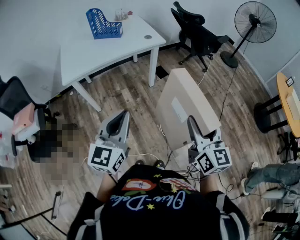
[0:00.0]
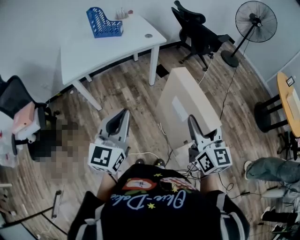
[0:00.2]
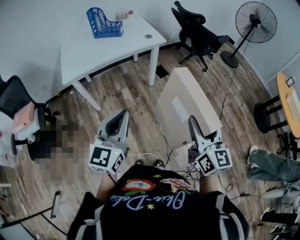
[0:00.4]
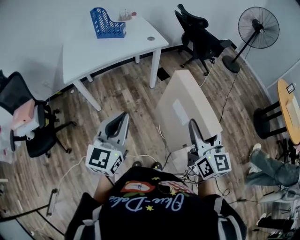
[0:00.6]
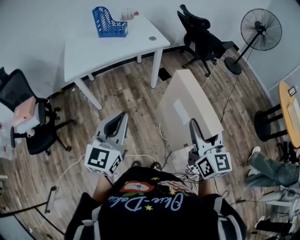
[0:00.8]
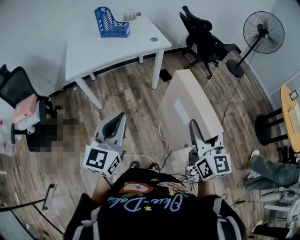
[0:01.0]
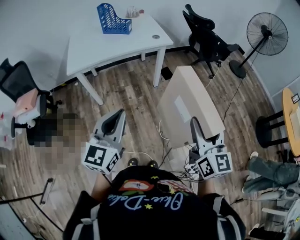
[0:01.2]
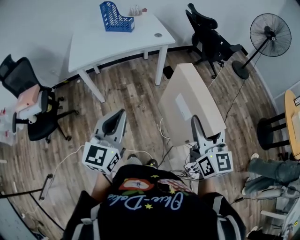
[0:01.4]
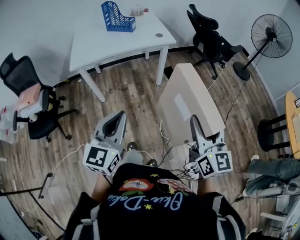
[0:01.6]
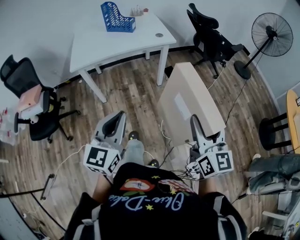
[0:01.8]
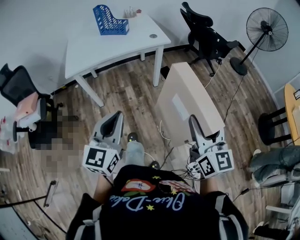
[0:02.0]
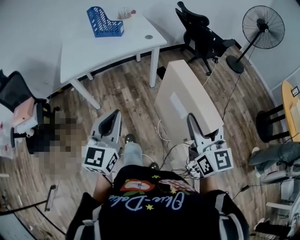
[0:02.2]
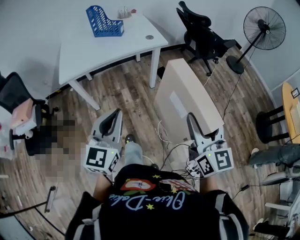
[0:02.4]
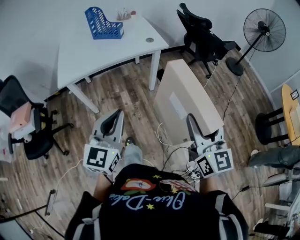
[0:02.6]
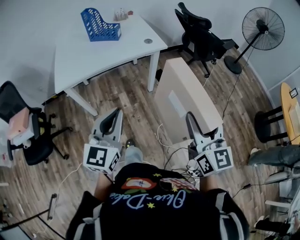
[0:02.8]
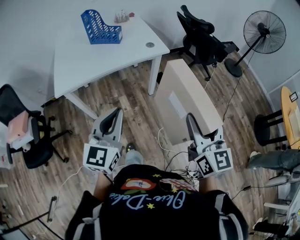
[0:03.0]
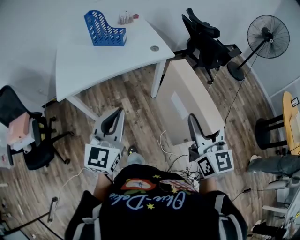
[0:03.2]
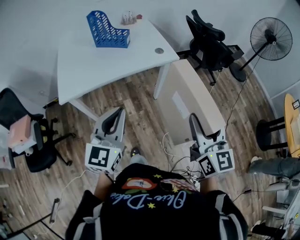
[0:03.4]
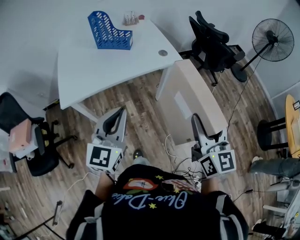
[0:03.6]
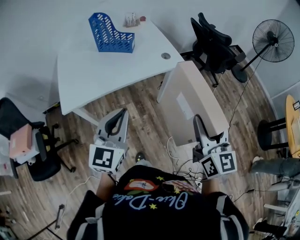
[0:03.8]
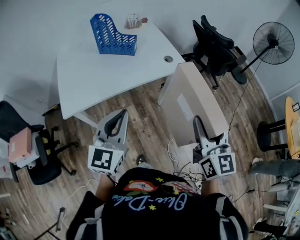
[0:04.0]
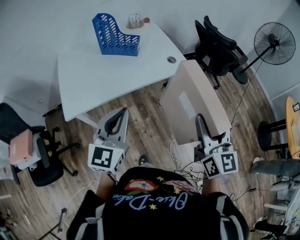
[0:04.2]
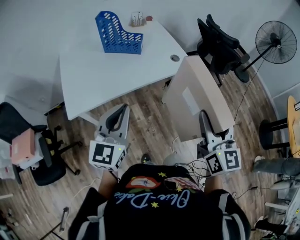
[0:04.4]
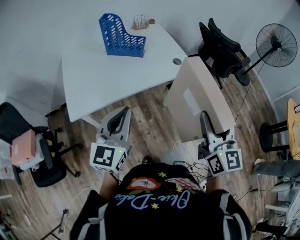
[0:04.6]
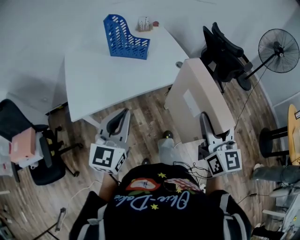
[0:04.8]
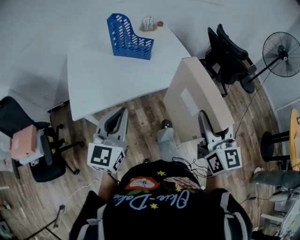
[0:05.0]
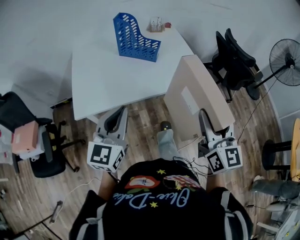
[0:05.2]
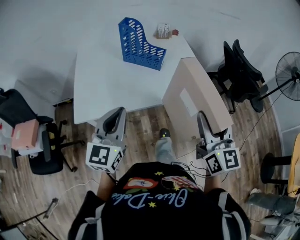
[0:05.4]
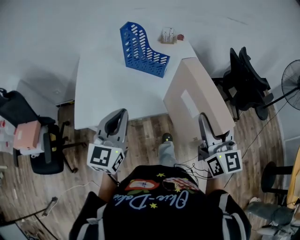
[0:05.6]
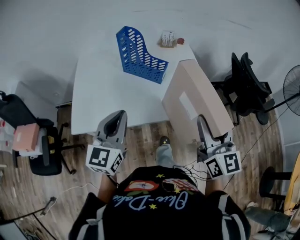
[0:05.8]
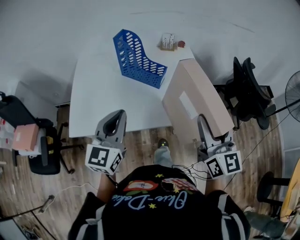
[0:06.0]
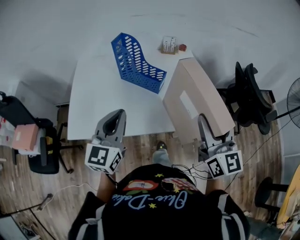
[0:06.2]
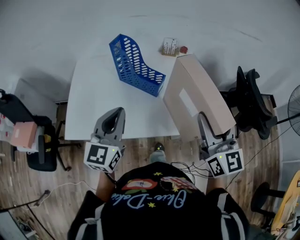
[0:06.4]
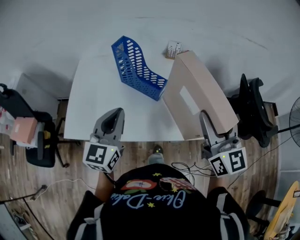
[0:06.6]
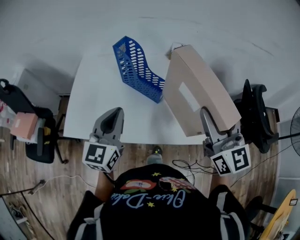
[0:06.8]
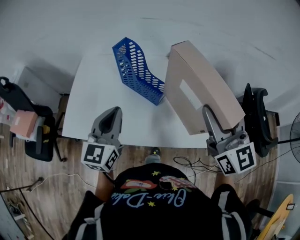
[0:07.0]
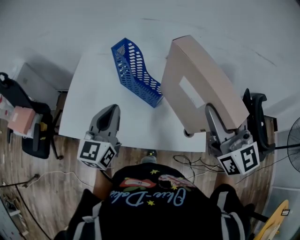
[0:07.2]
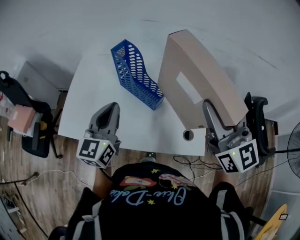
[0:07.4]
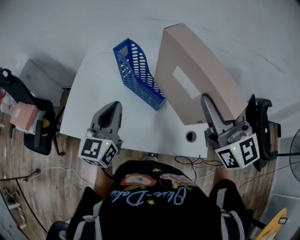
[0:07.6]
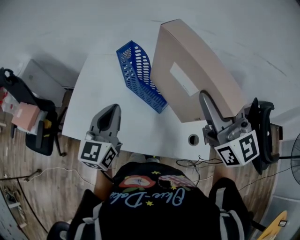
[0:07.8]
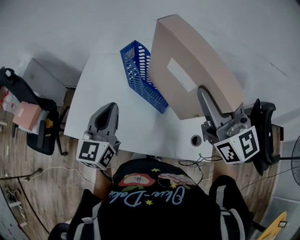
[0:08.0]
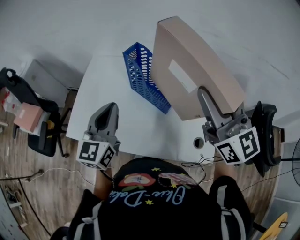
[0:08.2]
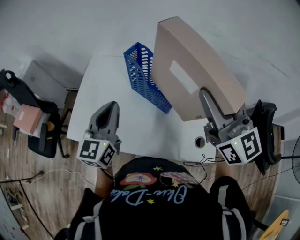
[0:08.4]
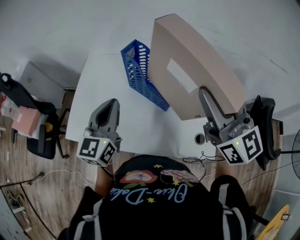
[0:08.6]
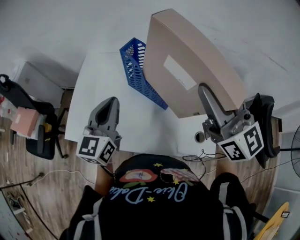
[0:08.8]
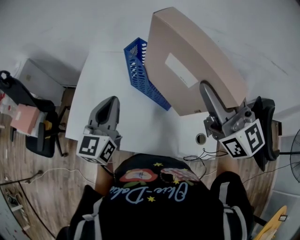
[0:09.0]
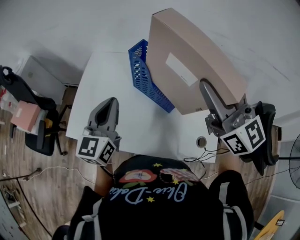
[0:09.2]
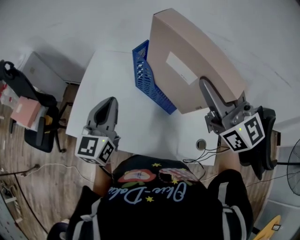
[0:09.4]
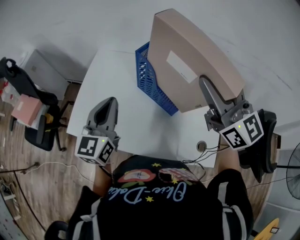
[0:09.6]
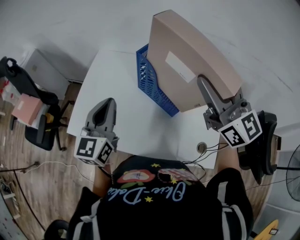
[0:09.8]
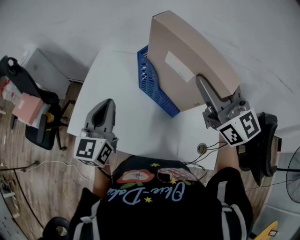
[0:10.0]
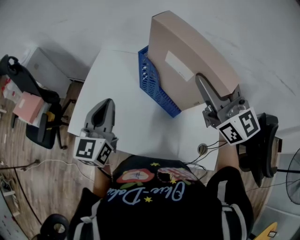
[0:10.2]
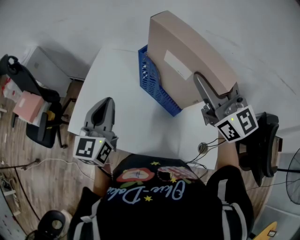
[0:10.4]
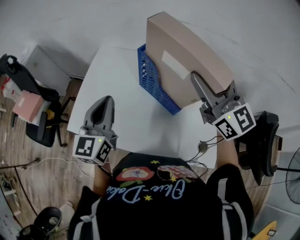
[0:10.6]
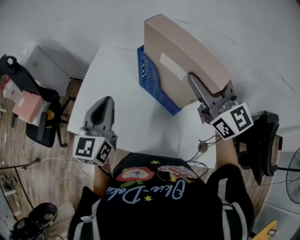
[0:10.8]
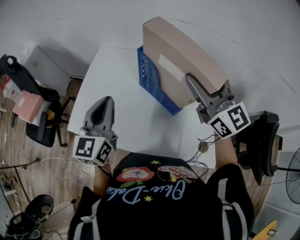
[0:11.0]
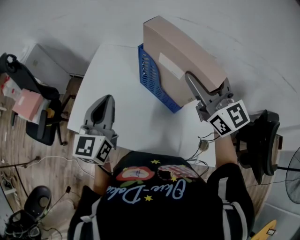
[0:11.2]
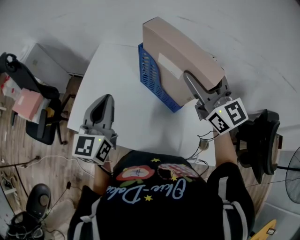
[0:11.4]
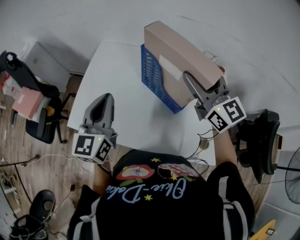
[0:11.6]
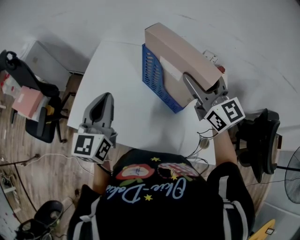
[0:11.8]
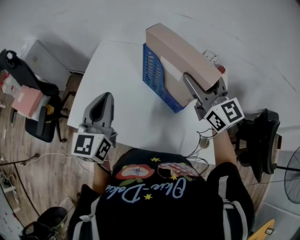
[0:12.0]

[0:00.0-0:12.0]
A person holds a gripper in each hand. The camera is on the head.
0:00.0 to 0:01.6: There are only small adjustments of the grippers.
0:01.6 to 0:03.0: Both grippers travel together forward, about 15 cm.
0:03.0 to 0:04.4: The right gripper heads forward and to the left, covering roughly 20 cm, while the left gripper is displaced to the left and forward by approximately 25 cm.
0:04.4 to 0:06.0: Both grippers travel together forward, approximately 25 cm. The right gripper rotates about 20 degrees.
0:06.0 to 0:07.6: The right gripper travels forward by approximately 20 cm, and turns by approximately 30 degrees, while the left gripper heads forward, covering approximately 15 cm.
0:07.6 to 0:09.0: The right gripper heads to the left and forward, covering about 10 cm. The left gripper shifts about 5 cm to the left.
0:09.0 to 0:10.4: The right gripper travels forward by approximately 10 cm.
0:10.4 to 0:12.0: The right gripper goes roughly 10 cm downward.

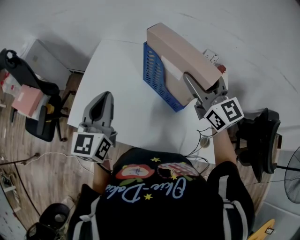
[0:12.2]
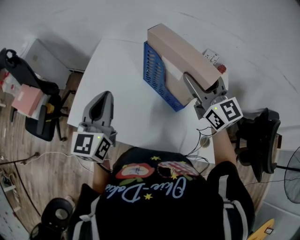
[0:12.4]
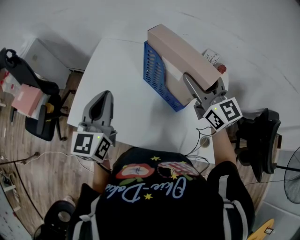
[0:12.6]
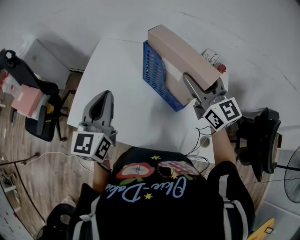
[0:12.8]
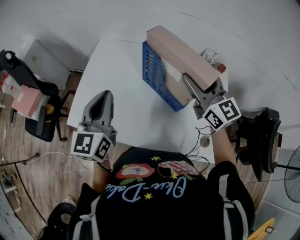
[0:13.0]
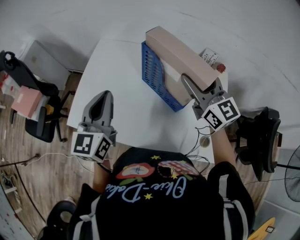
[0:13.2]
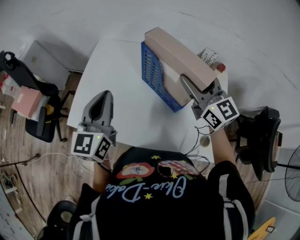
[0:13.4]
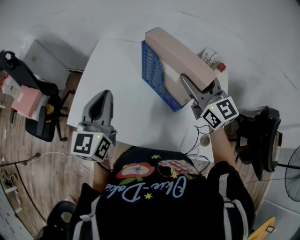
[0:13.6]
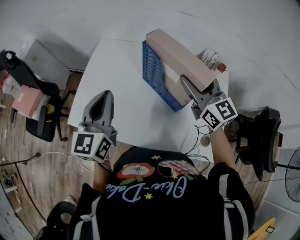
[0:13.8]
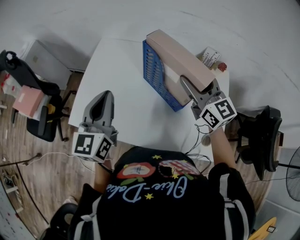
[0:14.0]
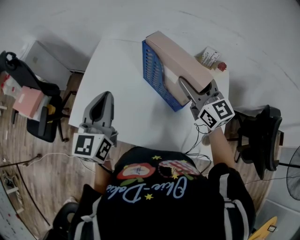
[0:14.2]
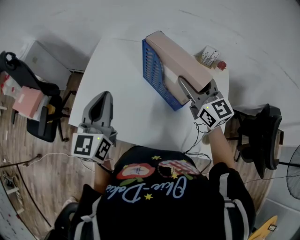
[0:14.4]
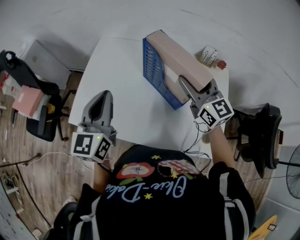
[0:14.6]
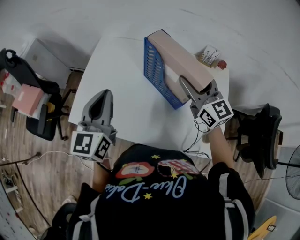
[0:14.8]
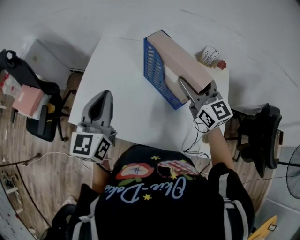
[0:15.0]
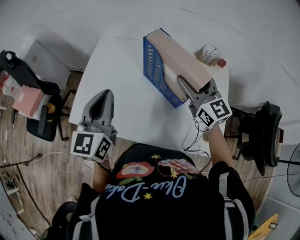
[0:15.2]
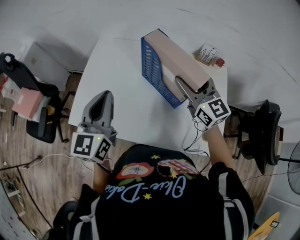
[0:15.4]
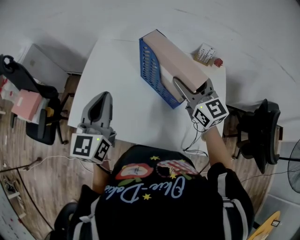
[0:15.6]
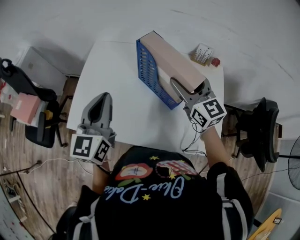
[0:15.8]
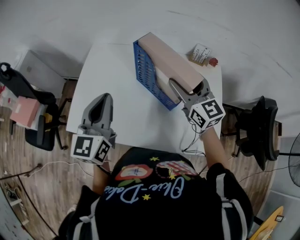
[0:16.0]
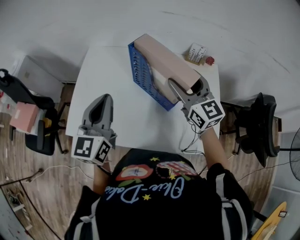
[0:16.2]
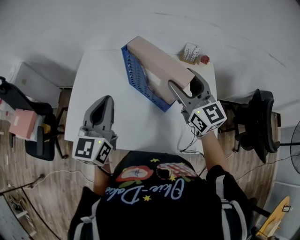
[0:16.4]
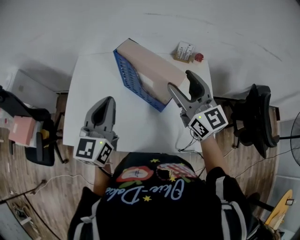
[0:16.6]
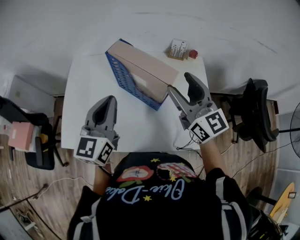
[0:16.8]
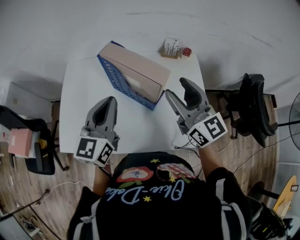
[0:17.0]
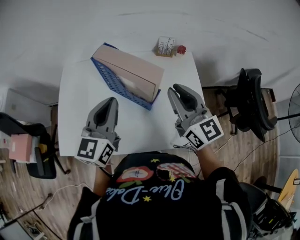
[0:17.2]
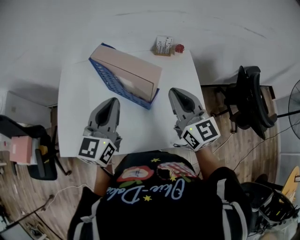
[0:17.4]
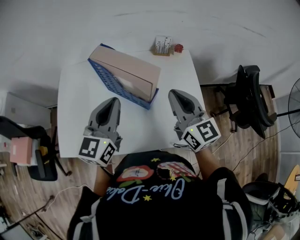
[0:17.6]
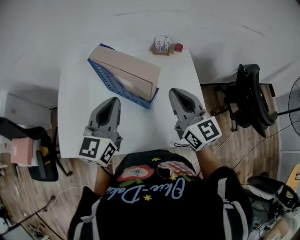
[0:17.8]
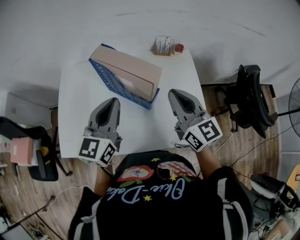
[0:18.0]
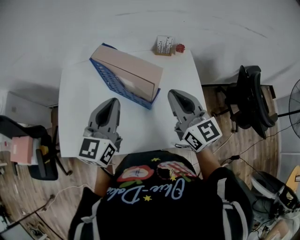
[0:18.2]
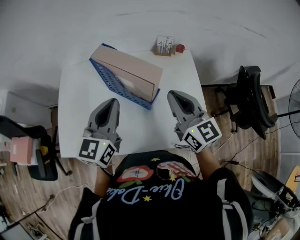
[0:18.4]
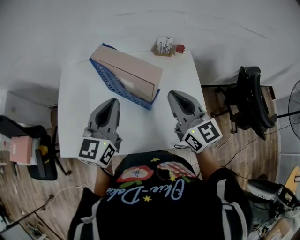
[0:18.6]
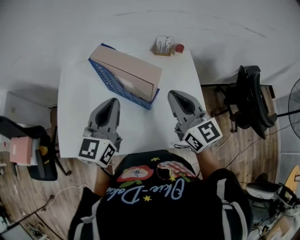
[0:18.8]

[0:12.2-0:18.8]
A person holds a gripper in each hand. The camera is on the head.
0:12.2 to 0:15.4: The grippers make only small movements.
0:15.4 to 0:17.2: The left gripper goes some 15 cm to the right, and rotates approximately 20 degrees. Meanwhile the right gripper shifts approximately 10 cm backward and to the right, and closes.
0:17.2 to 0:18.8: The grippers stay close to where they were, moving slightly.

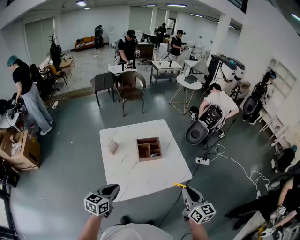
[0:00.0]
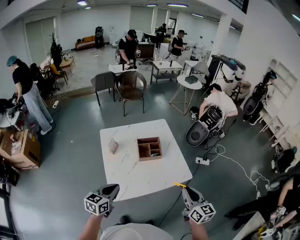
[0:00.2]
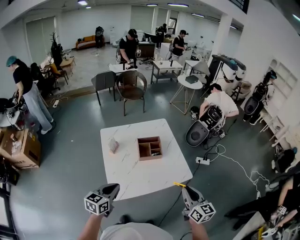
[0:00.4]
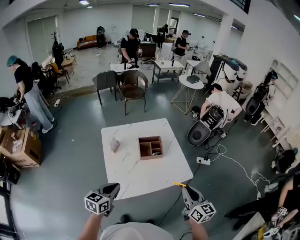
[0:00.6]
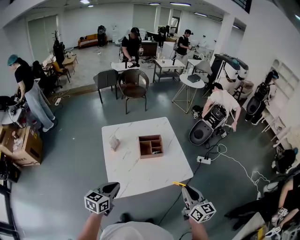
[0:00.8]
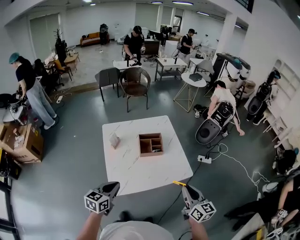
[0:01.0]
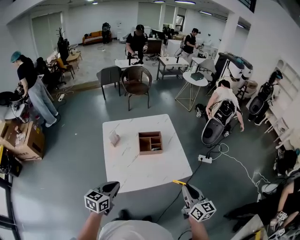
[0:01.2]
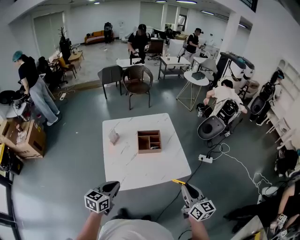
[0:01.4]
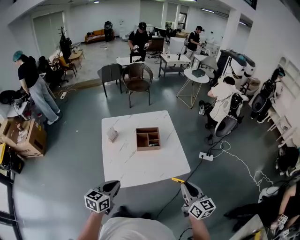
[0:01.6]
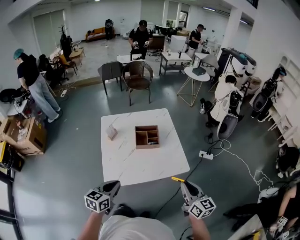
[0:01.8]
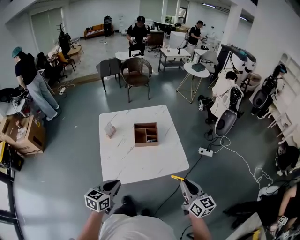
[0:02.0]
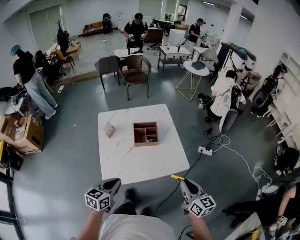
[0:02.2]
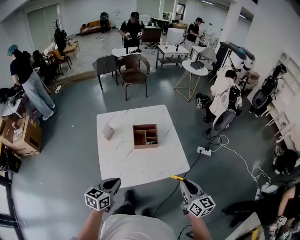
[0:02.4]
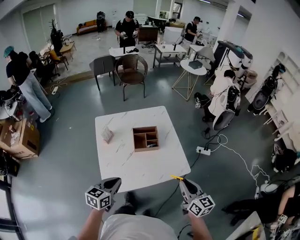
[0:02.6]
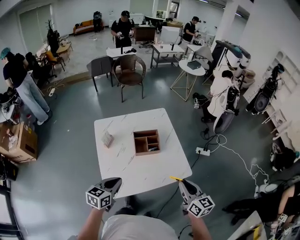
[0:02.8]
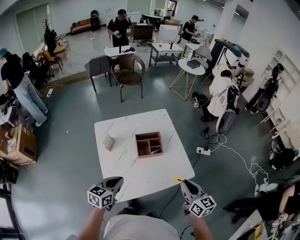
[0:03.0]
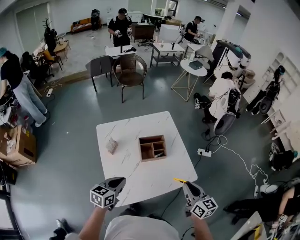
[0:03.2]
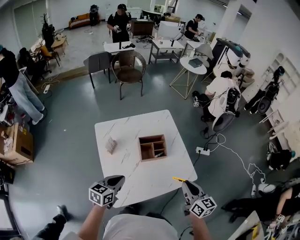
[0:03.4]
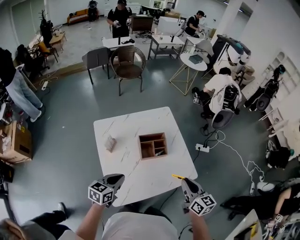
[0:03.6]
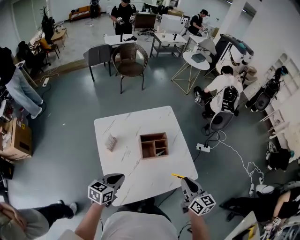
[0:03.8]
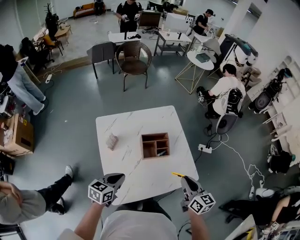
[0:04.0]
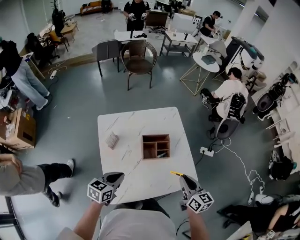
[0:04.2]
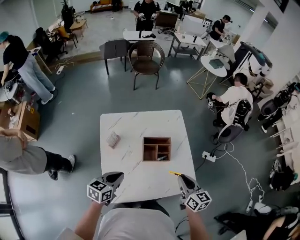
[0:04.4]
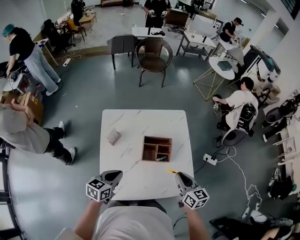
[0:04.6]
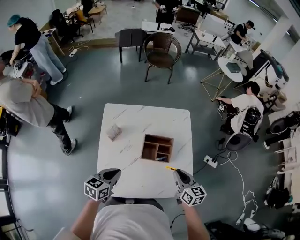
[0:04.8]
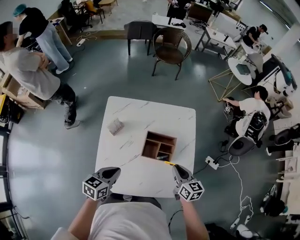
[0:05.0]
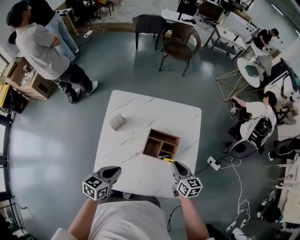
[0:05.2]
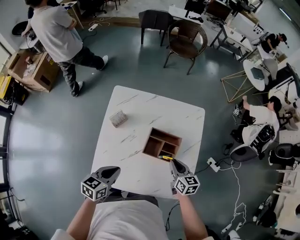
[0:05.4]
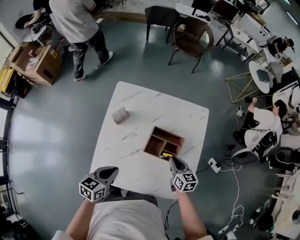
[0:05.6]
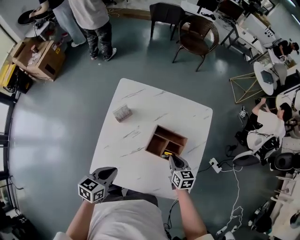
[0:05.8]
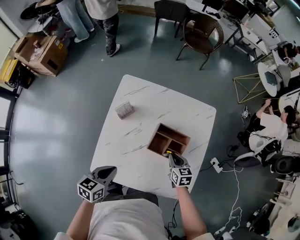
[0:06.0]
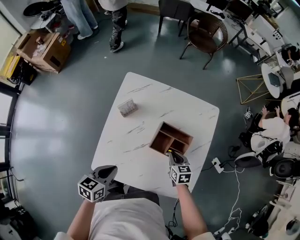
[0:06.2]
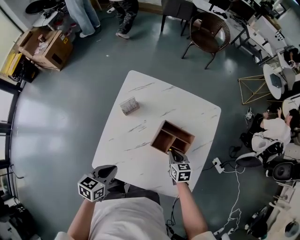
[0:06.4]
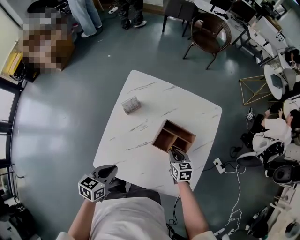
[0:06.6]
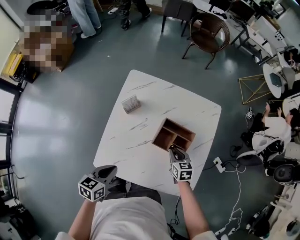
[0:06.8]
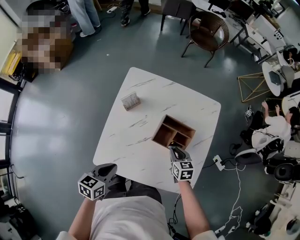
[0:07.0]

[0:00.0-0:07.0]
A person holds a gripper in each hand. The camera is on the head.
0:00.0 to 0:01.4: The left gripper moves some 5 cm.
0:01.4 to 0:02.8: Both grippers travel together forward, some 10 cm.
0:02.8 to 0:04.2: The left gripper heads forward, to the left and downward, covering roughly 15 cm. The right gripper travels forward and to the left by roughly 15 cm.
0:04.2 to 0:05.6: The right gripper shifts roughly 20 cm downward, and turns by about 30 degrees. Meanwhile the left gripper moves downward, some 5 cm, and rotates approximately 30 degrees.
0:05.6 to 0:07.0: The left gripper goes about 5 cm backward, while the right gripper shifts approximately 5 cm downward.
